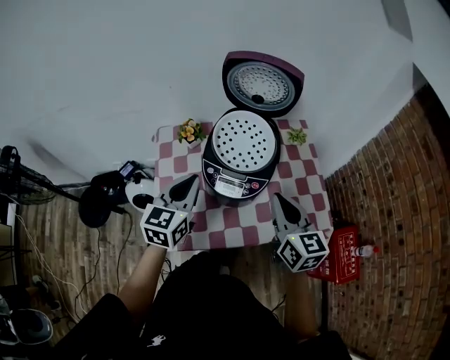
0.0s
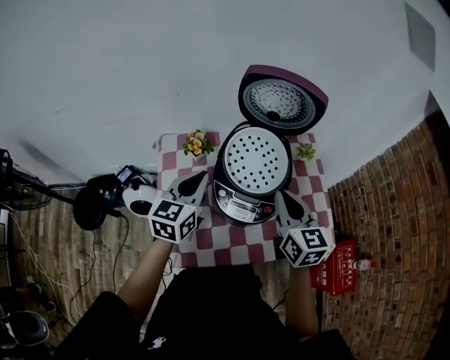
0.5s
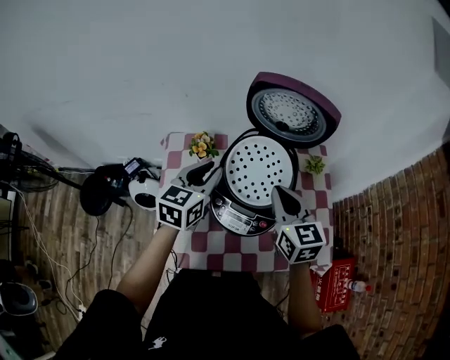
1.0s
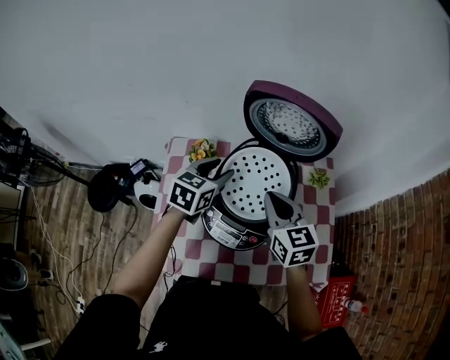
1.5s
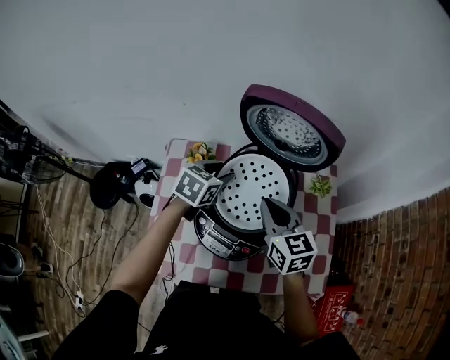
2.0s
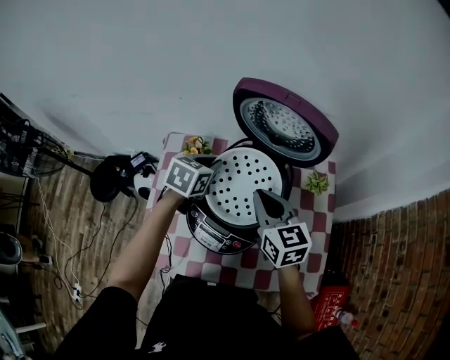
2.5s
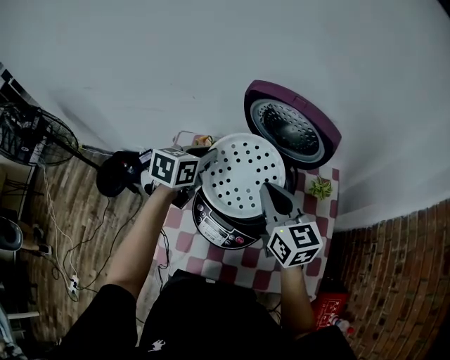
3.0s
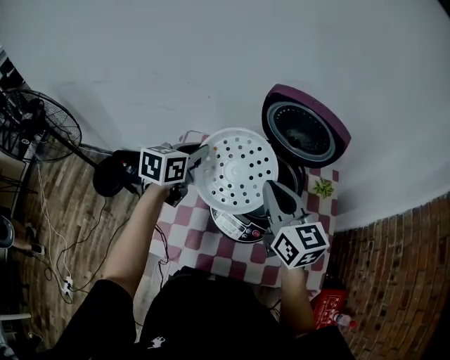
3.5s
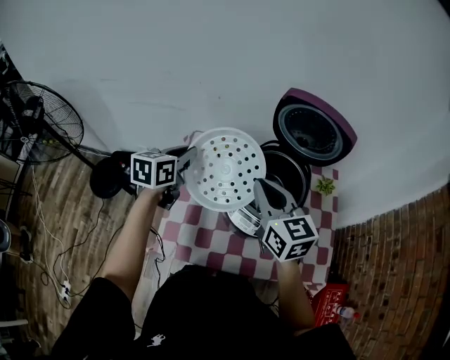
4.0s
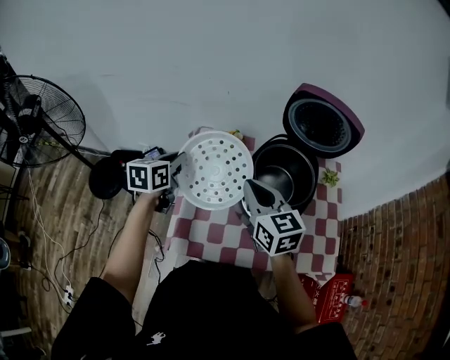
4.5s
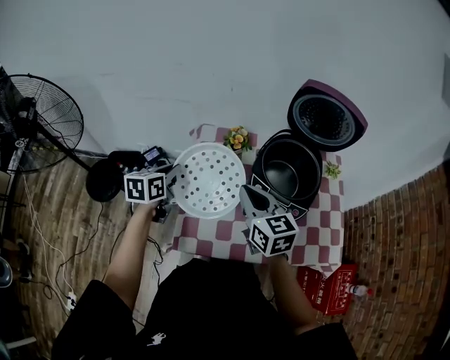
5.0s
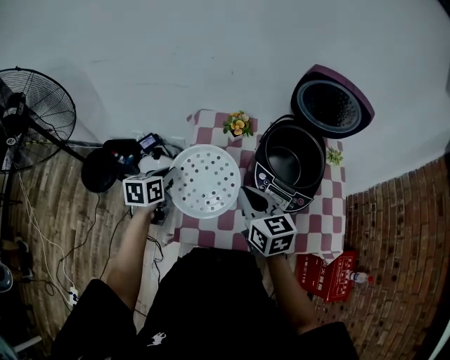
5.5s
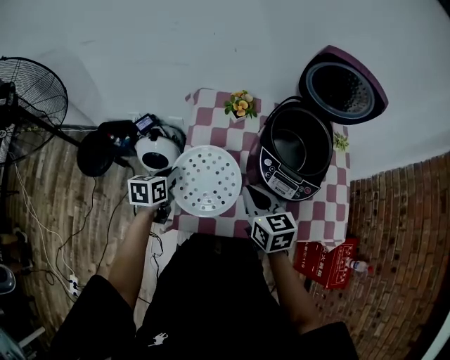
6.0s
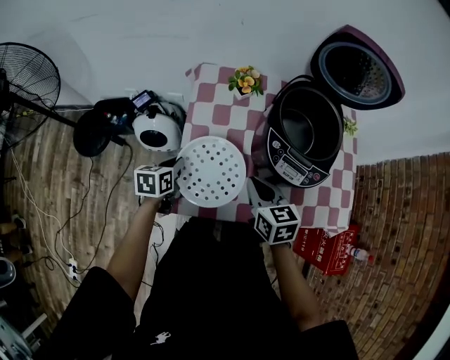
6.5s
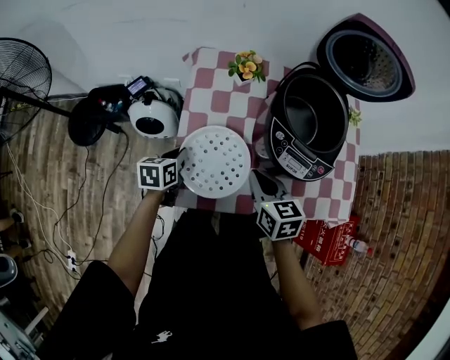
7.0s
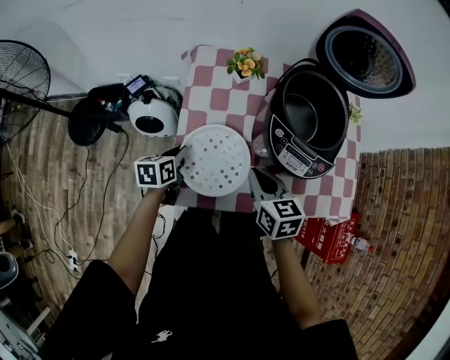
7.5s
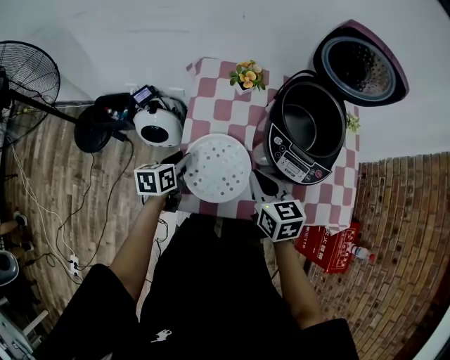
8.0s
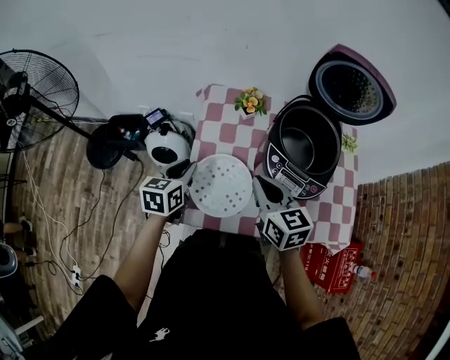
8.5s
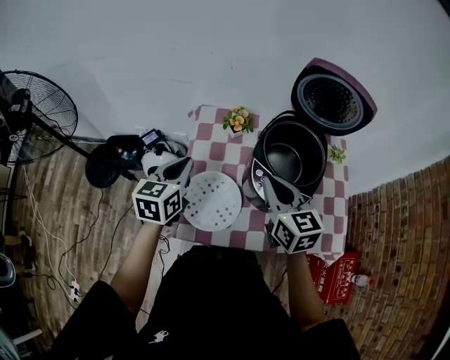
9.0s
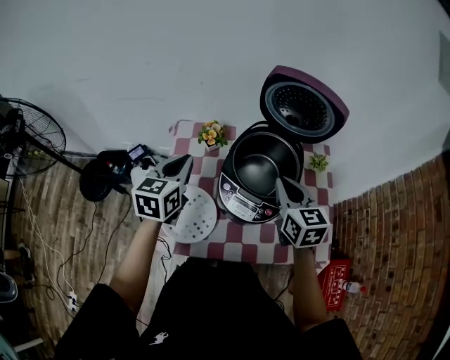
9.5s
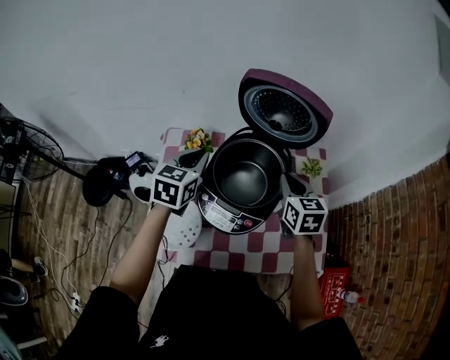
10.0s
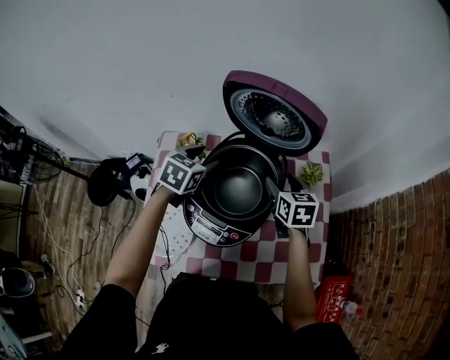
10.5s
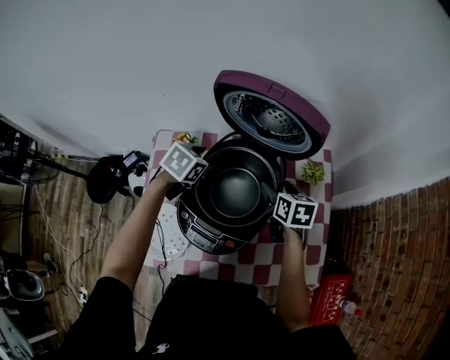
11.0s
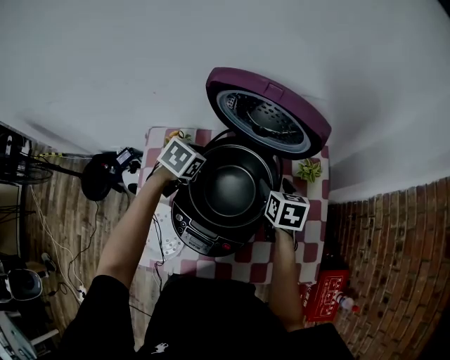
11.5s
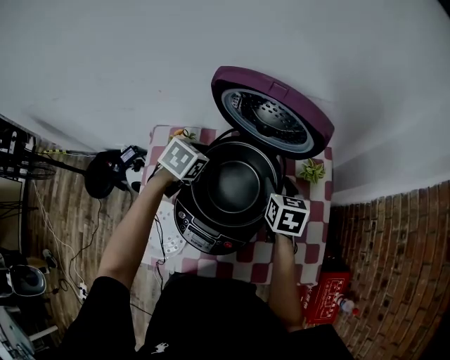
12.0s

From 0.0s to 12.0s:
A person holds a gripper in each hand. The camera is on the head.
From 0.0s to 2.0s: The left gripper shifts roughly 25 cm forward and downward, rotates roughly 30 degrees, and opens up; the right gripper moves forward, roughly 20 cm, and rotates roughly 20 degrees.
From 2.0s to 4.0s: The left gripper heads to the left and upward, covering about 20 cm, changes its angle by approximately 30 degrees, and closes; the right gripper goes roughly 15 cm to the left, upward and backward.
From 4.0s to 6.0s: The grippers both shift downward, to the left and backward by approximately 25 cm.
From 6.0s to 8.0s: The left gripper moves some 5 cm, and opens its fingers.
From 8.0s to 10.0s: The left gripper travels upward, to the right and forward by approximately 35 cm, turns by roughly 40 degrees, and closes up; the right gripper heads to the right and forward, covering roughly 30 cm.
From 10.0s to 12.0s: The two grippers go approximately 10 cm downward and forward. The left gripper rotates about 30 degrees, and opens up. The right gripper opens.

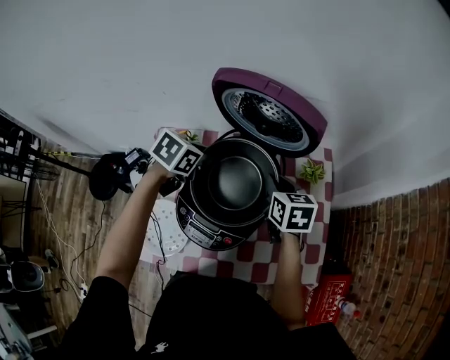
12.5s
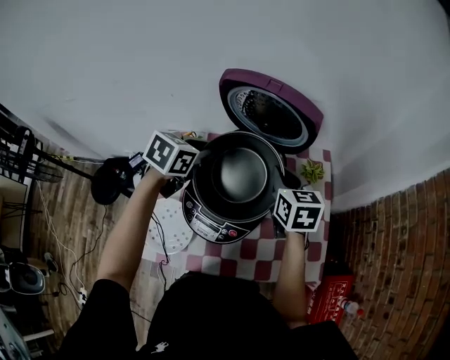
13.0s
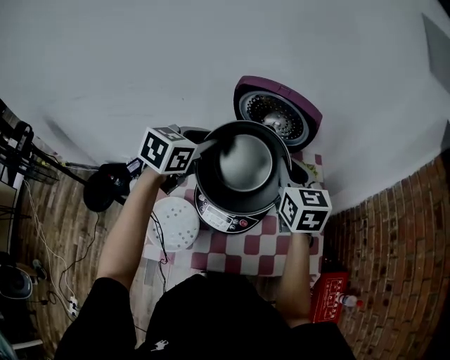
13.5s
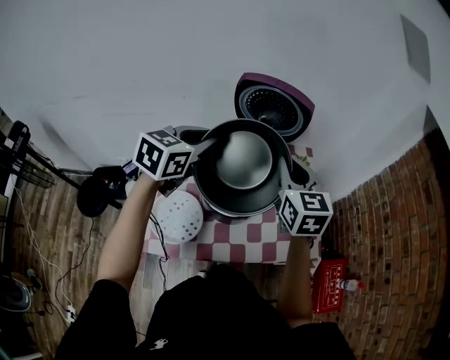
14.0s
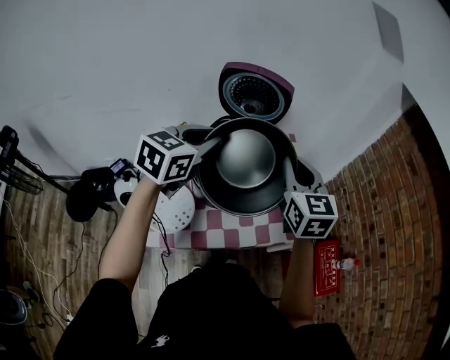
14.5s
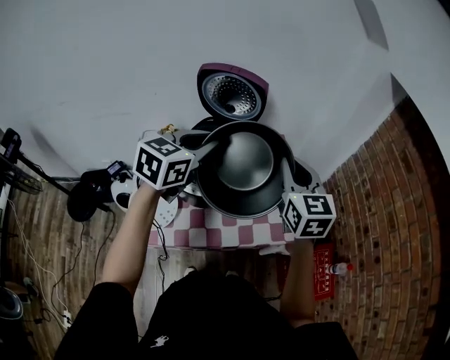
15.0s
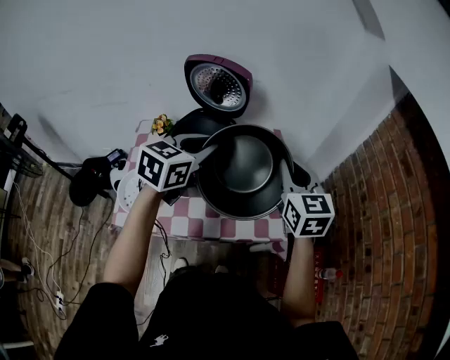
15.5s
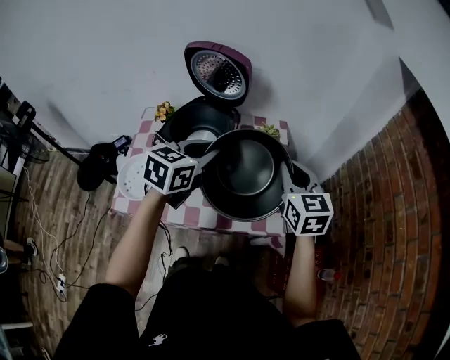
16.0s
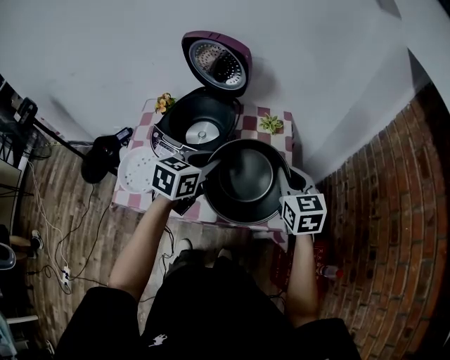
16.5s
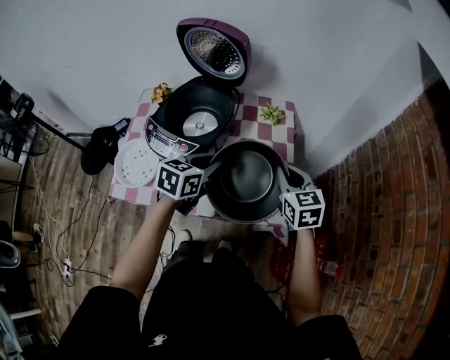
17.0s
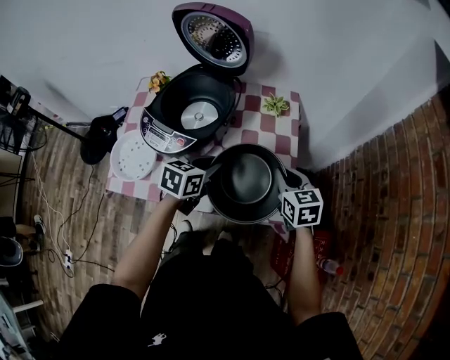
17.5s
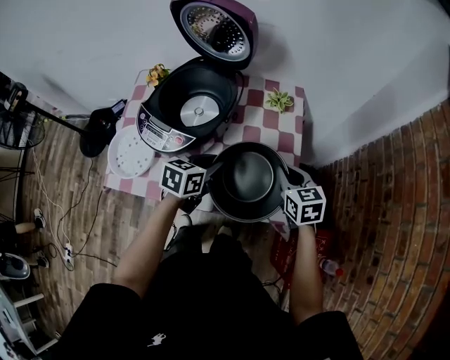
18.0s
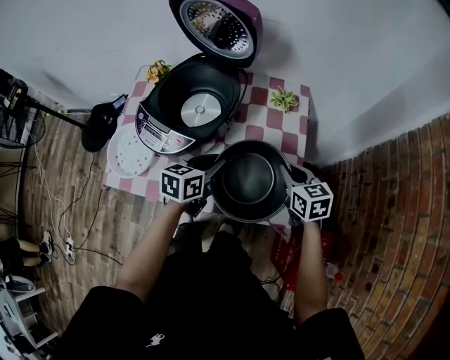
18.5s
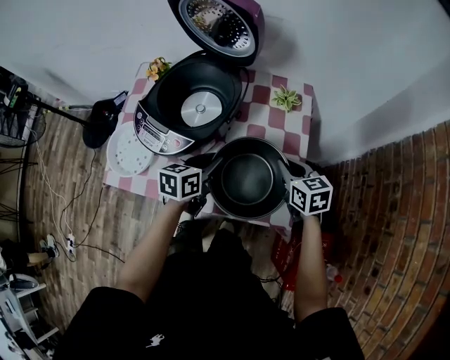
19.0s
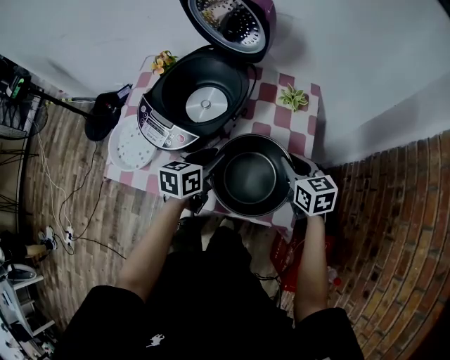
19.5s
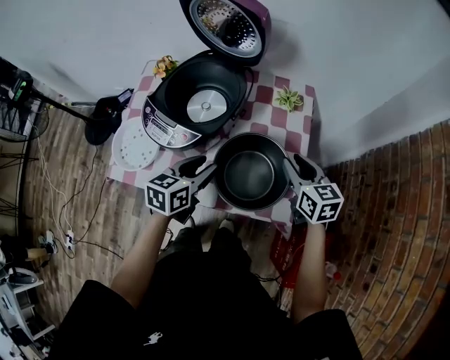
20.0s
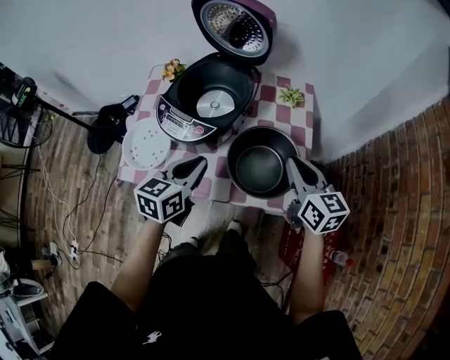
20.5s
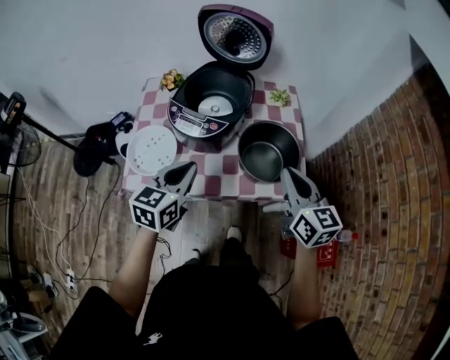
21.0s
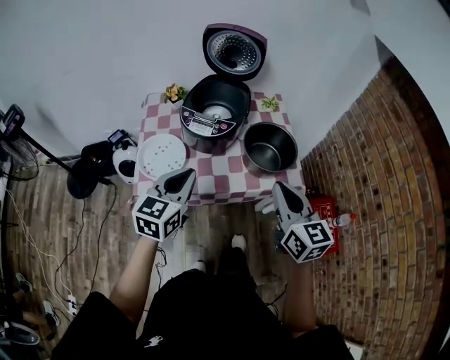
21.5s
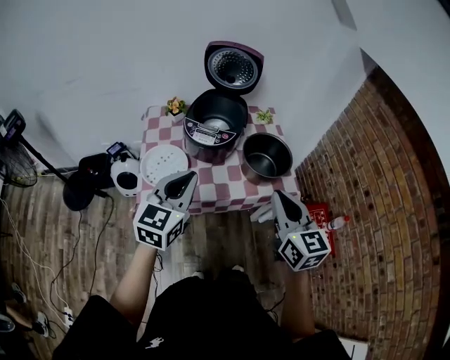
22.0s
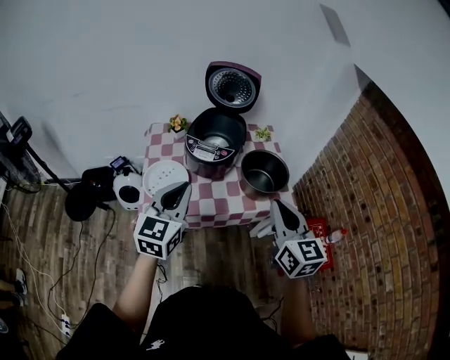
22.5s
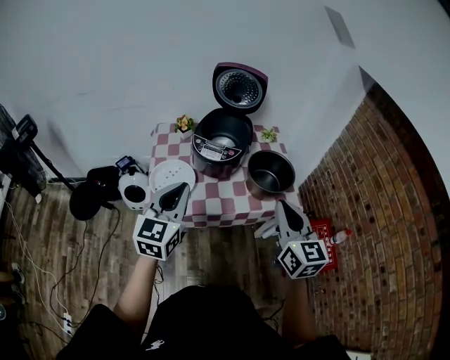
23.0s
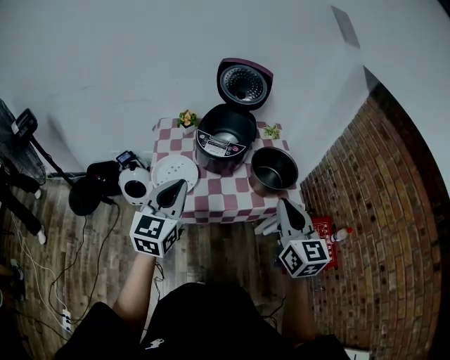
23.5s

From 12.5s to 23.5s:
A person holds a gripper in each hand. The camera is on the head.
From 12.5s to 14.5s: The two grippers go approximately 30 cm upward and backward. The left gripper tilts its fingers about 30 degrees upward, while the right gripper changes its angle by about 40 degrees.
From 14.5s to 16.0s: The left gripper is displaced to the right by approximately 20 cm, while the right gripper travels to the right and downward by some 20 cm.
From 16.0s to 18.0s: The grippers both shift downward by some 20 cm. The left gripper changes its angle by about 20 degrees. Meanwhile the right gripper swivels approximately 20 degrees.
From 18.0s to 20.0s: The left gripper ends up roughly 5 cm from where it was, and opens.
From 20.0s to 21.5s: The two grippers go approximately 35 cm backward, to the left and upward. The right gripper turns by approximately 30 degrees, and closes its fingers. The left gripper turns by some 30 degrees, and closes its fingers.
From 21.5s to 23.5s: The left gripper shifts roughly 10 cm to the left, upward and backward. Meanwhile the right gripper heads backward and upward, covering roughly 5 cm.

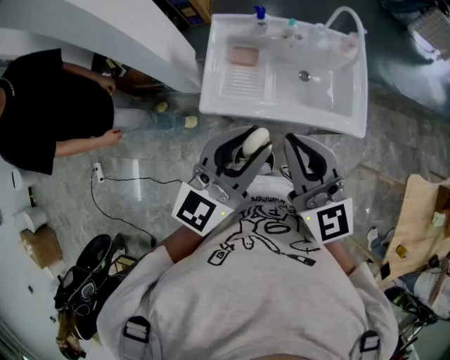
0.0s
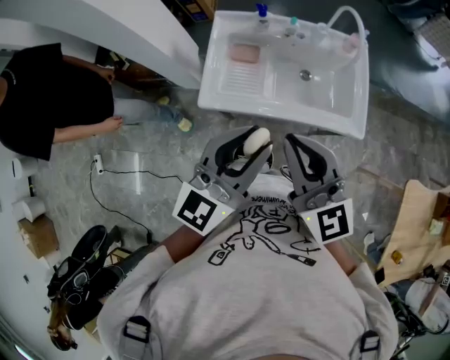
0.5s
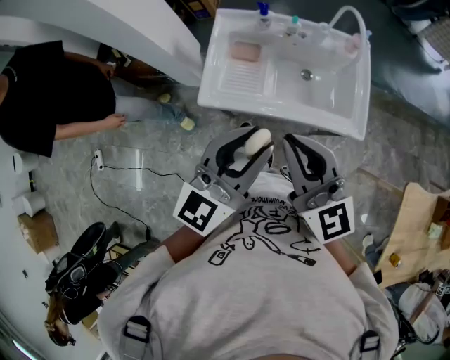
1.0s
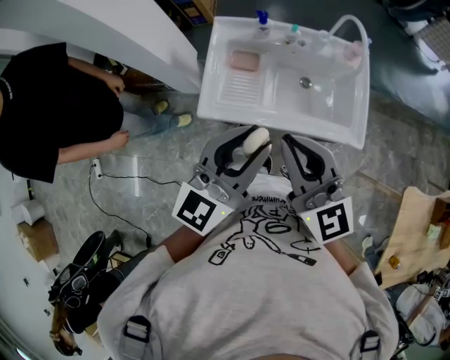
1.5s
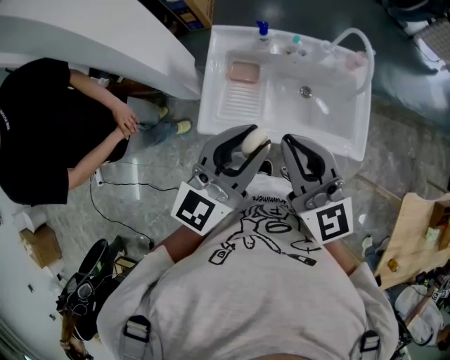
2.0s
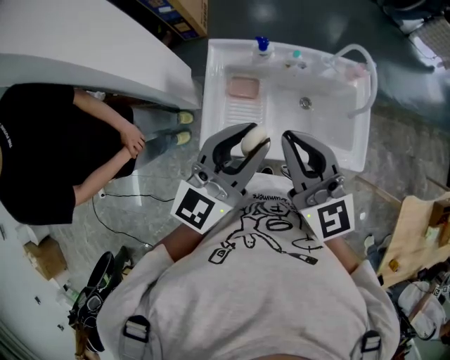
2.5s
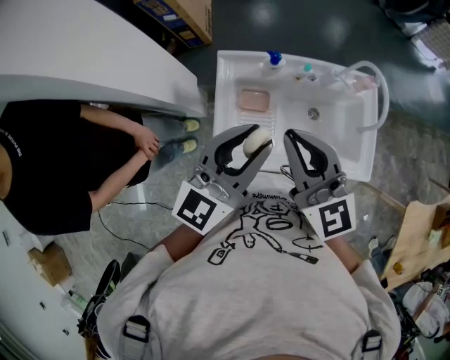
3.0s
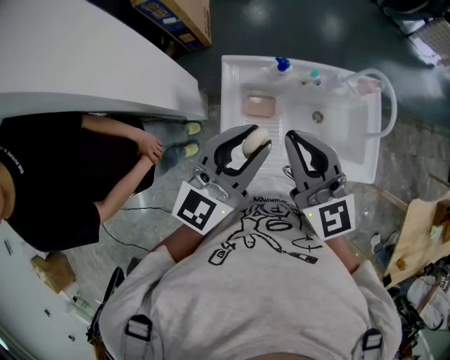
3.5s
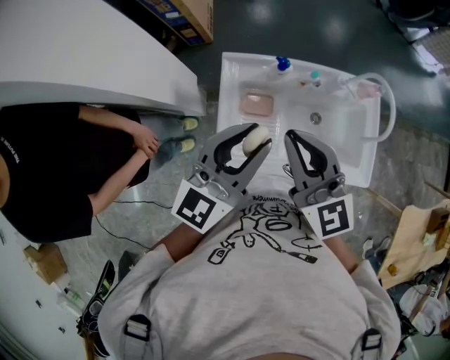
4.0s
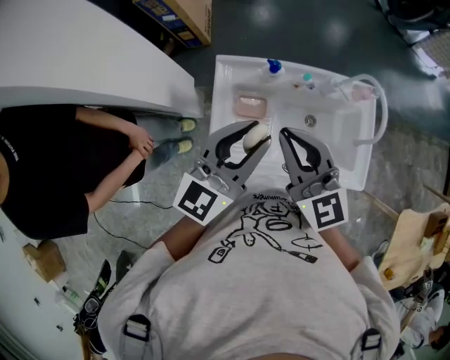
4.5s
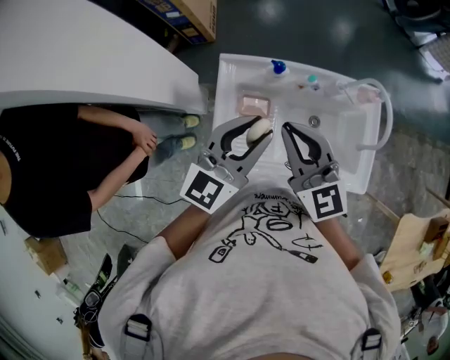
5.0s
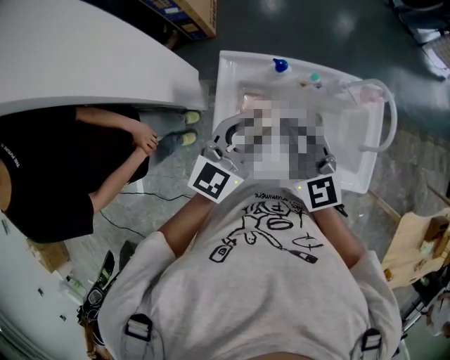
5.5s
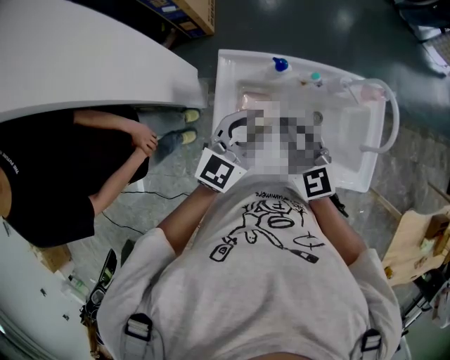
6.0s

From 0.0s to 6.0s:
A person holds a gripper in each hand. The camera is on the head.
From 0.0s to 2.0s: The grippers both shift forward by about 10 cm.
From 2.0s to 4.0s: The grippers both shift forward and to the left by about 15 cm.
From 4.0s to 6.0s: The grippers both shift downward and forward by roughly 15 cm.
